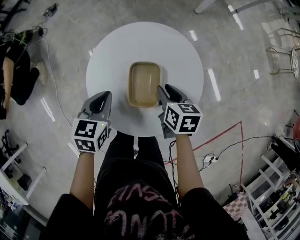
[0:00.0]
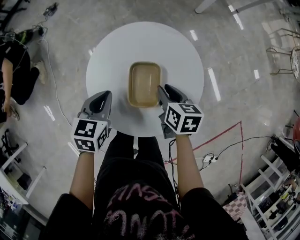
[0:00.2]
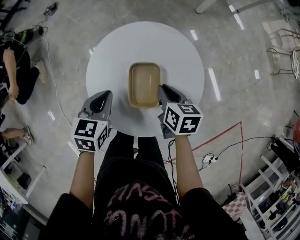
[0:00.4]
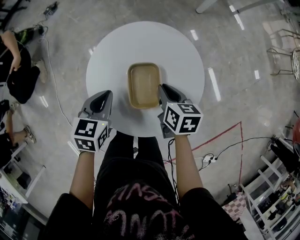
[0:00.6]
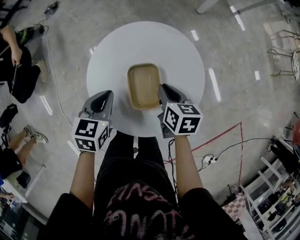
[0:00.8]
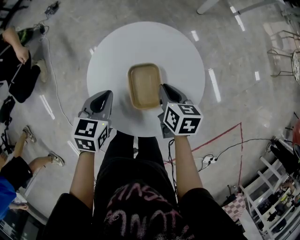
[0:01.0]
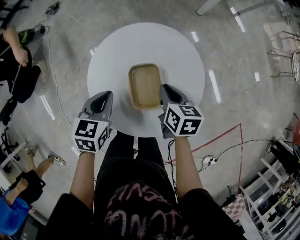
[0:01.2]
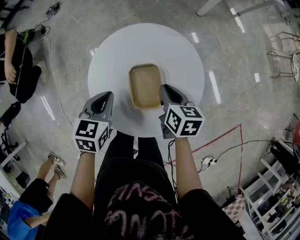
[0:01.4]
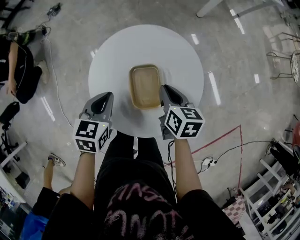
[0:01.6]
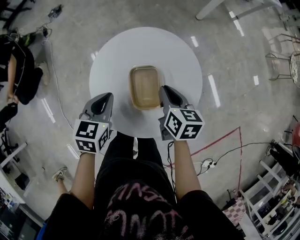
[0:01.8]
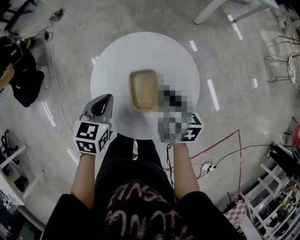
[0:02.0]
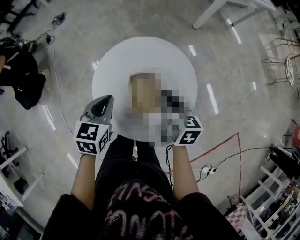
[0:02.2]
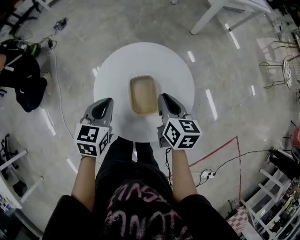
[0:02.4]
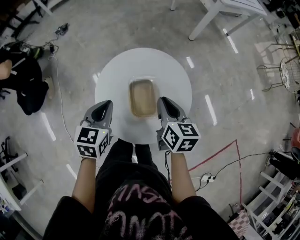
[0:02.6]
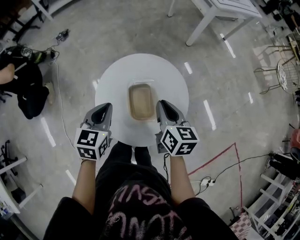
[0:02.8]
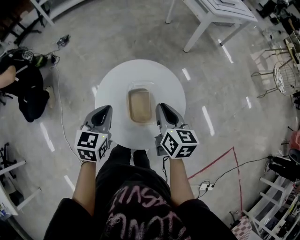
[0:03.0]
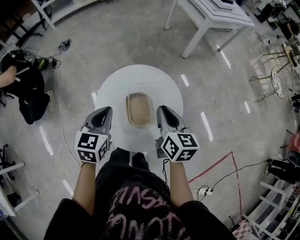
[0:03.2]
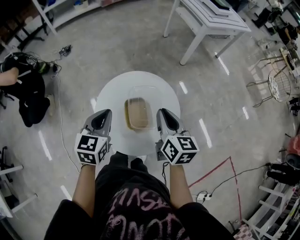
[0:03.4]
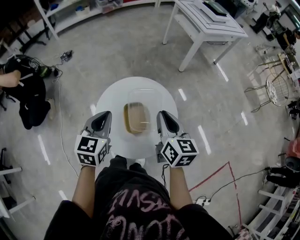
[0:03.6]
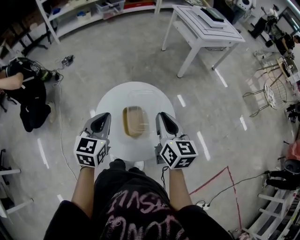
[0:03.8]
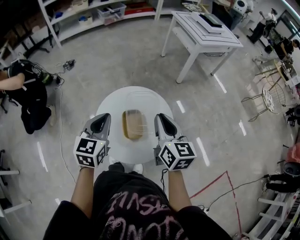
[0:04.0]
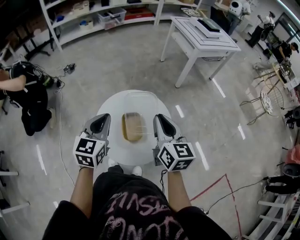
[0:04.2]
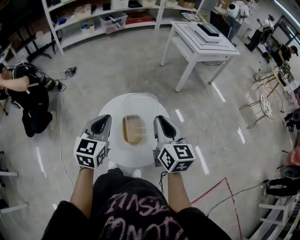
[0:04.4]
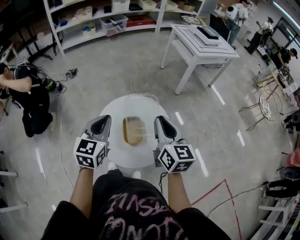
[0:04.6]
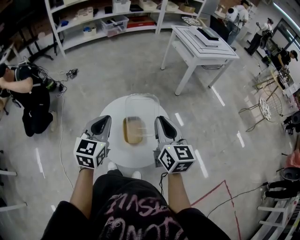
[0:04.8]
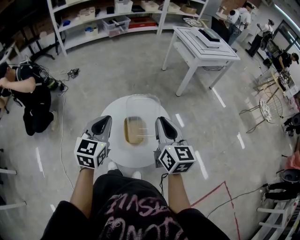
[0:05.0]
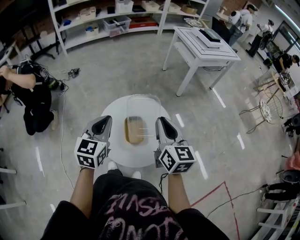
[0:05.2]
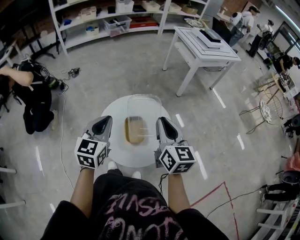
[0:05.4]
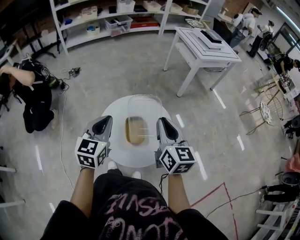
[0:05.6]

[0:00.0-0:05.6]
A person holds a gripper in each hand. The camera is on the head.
0:00.0 to 0:01.4: The grippers move only a little.
0:01.4 to 0:02.8: The two grippers go some 15 cm upward.
0:02.8 to 0:04.2: The two grippers go approximately 15 cm upward. The right gripper swivels approximately 20 degrees.
0:04.2 to 0:05.6: There are only small adjustments of the grippers.

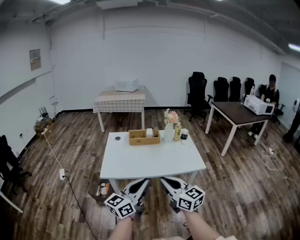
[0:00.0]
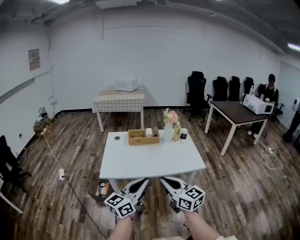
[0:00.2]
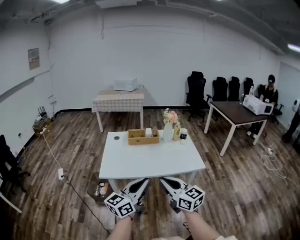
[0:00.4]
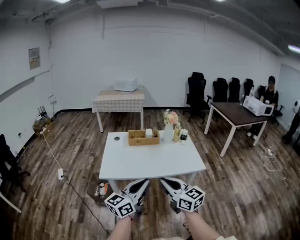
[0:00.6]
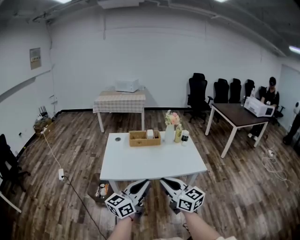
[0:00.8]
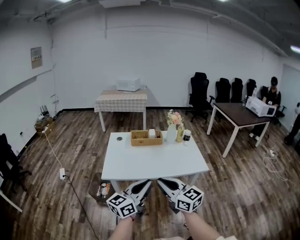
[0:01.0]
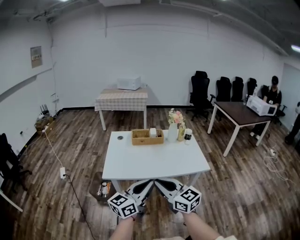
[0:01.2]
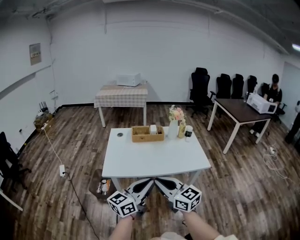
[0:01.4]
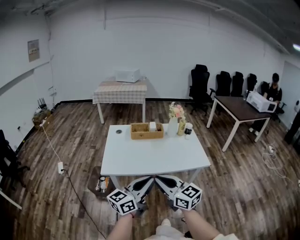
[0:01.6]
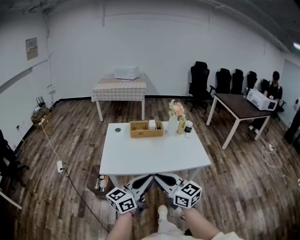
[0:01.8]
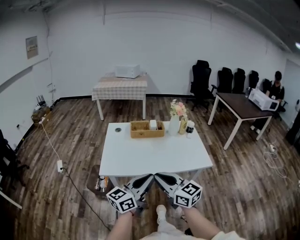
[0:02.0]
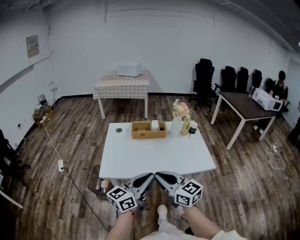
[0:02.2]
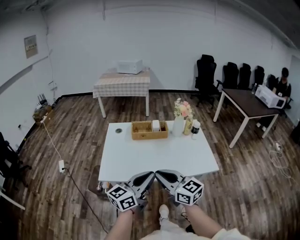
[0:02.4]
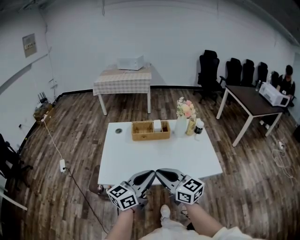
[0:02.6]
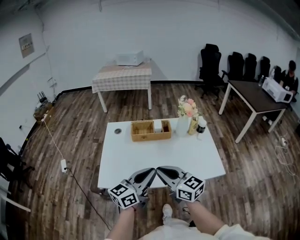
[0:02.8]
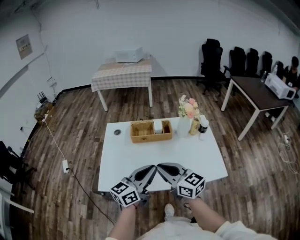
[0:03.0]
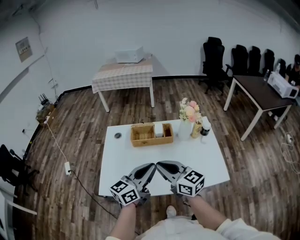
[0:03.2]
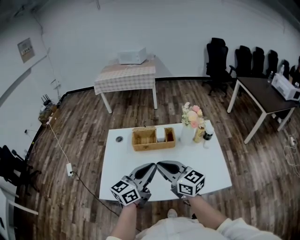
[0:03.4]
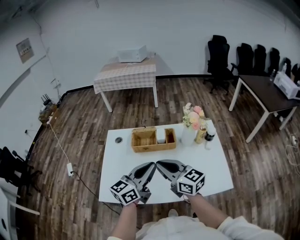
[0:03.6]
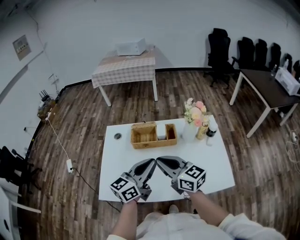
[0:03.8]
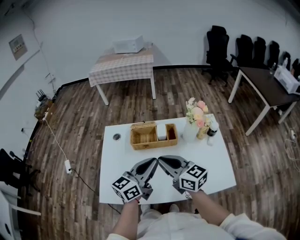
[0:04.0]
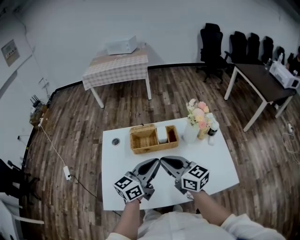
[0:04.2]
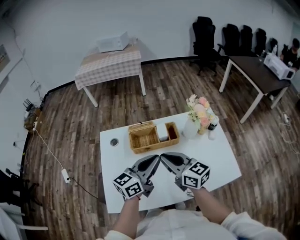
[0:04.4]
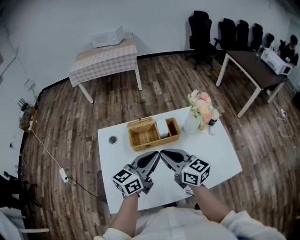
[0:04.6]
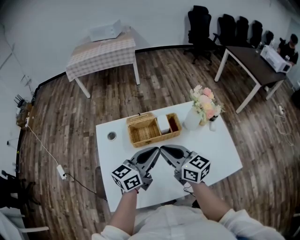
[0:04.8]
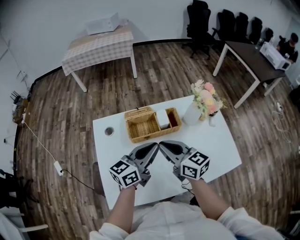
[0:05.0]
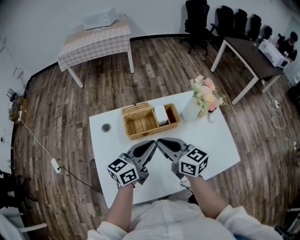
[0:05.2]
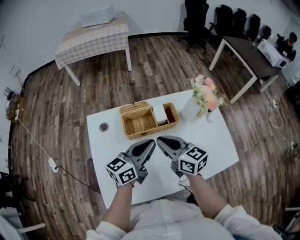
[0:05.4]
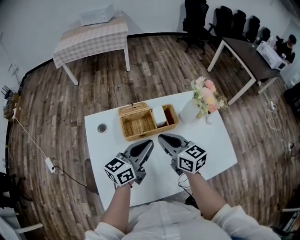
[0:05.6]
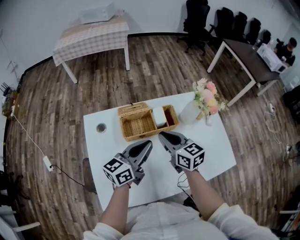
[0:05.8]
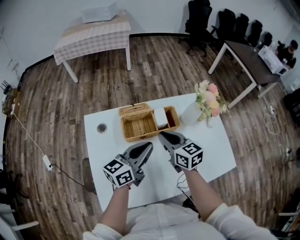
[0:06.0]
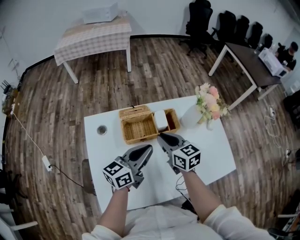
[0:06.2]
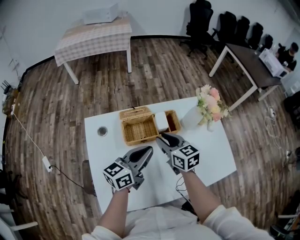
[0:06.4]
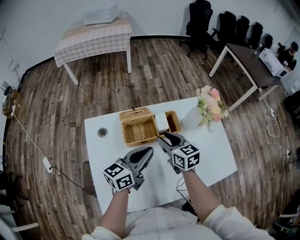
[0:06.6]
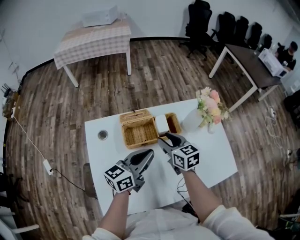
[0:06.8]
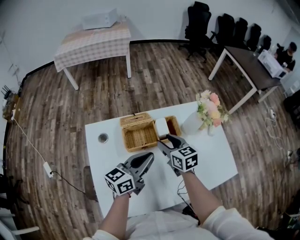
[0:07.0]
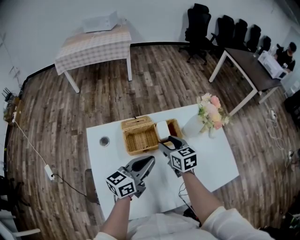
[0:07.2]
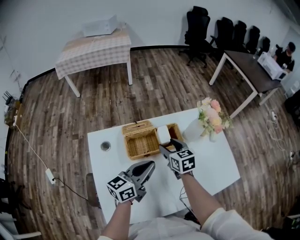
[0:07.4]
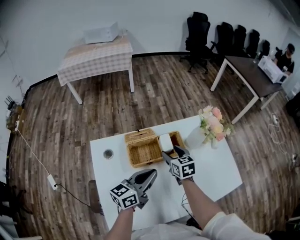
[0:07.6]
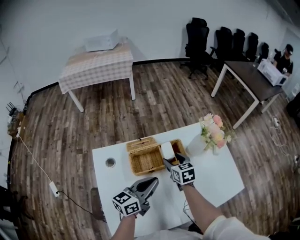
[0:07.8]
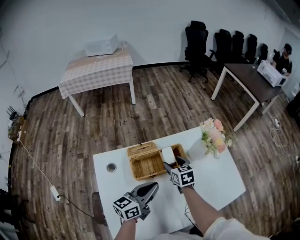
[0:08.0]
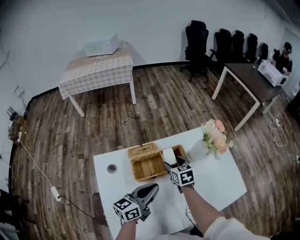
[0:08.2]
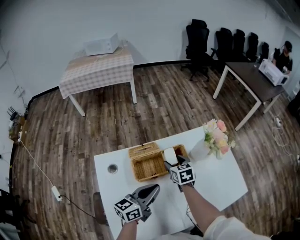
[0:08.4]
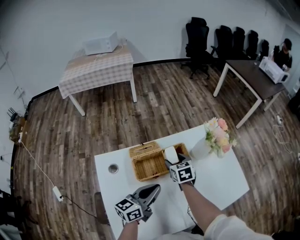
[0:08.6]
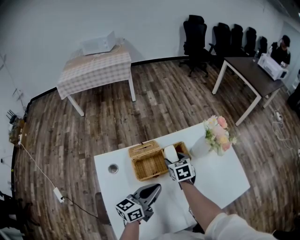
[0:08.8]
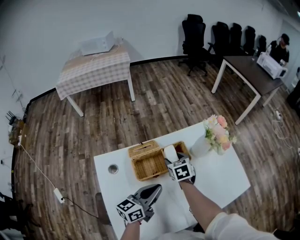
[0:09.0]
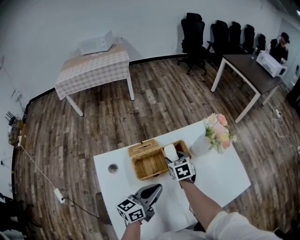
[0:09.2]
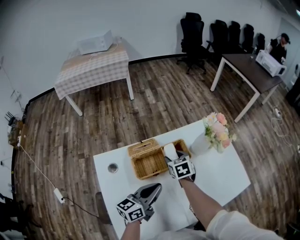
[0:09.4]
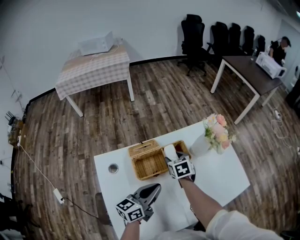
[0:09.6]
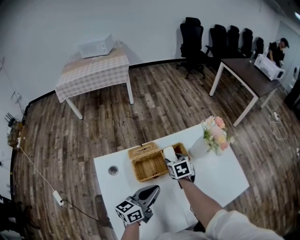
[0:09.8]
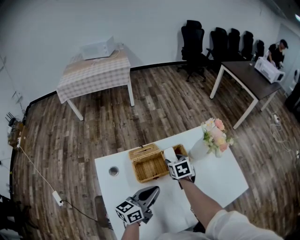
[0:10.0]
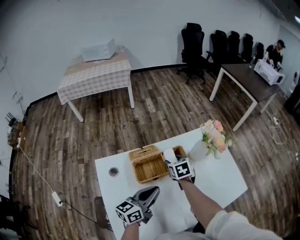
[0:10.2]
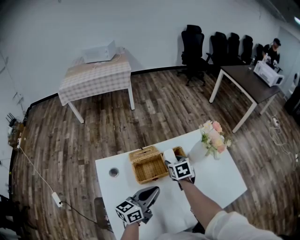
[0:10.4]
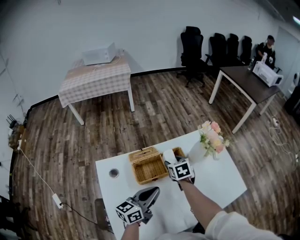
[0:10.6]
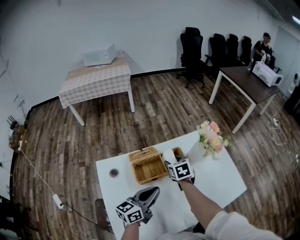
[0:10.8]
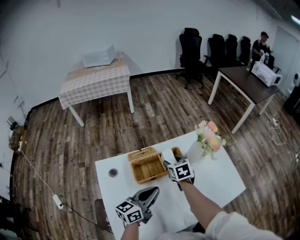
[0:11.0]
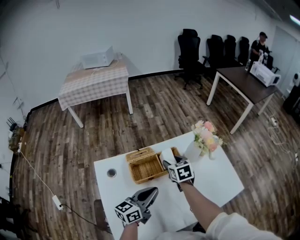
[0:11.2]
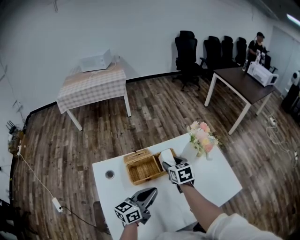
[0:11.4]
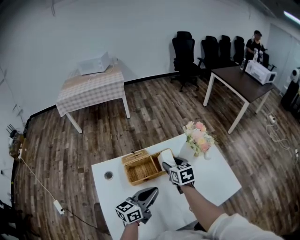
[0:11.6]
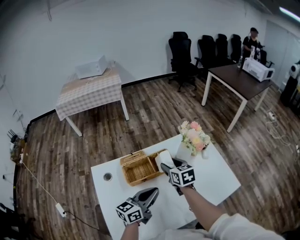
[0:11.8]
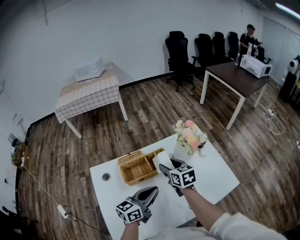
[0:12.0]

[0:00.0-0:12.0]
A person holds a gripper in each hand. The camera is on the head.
0:00.0 to 0:01.6: The right gripper heads to the left, covering roughly 5 cm.
0:01.6 to 0:03.0: The two grippers go roughly 25 cm forward.
0:03.0 to 0:04.4: Both grippers move forward, roughly 20 cm.
0:04.4 to 0:06.0: The right gripper travels forward and downward by about 15 cm, and turns by roughly 20 degrees. The left gripper shifts about 5 cm downward.
0:06.0 to 0:07.6: The right gripper shifts some 10 cm forward and downward, turns by about 20 degrees, and opens up.
0:07.6 to 0:09.0: The right gripper shifts by some 5 cm.
0:09.0 to 0:10.4: The grippers make only small movements.
0:10.4 to 0:12.0: The left gripper shifts about 10 cm to the right. The right gripper is displaced upward, to the right and backward by some 15 cm, and swivels approximately 20 degrees.

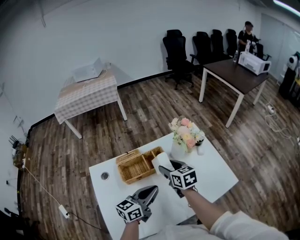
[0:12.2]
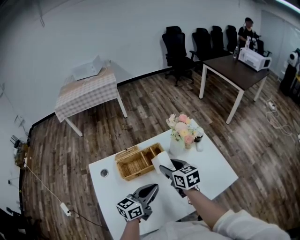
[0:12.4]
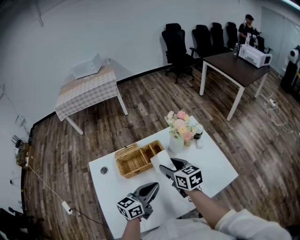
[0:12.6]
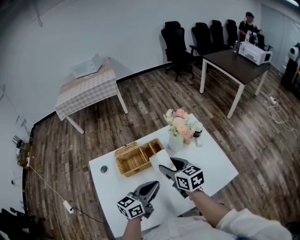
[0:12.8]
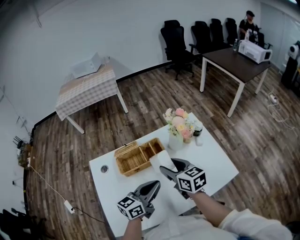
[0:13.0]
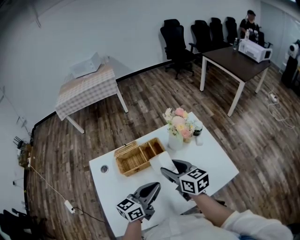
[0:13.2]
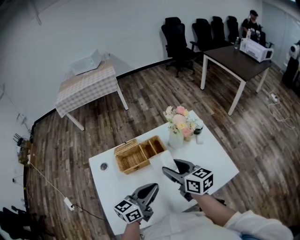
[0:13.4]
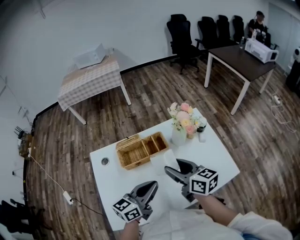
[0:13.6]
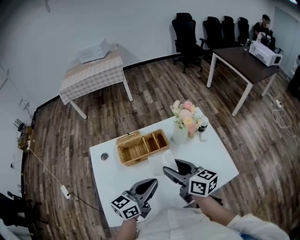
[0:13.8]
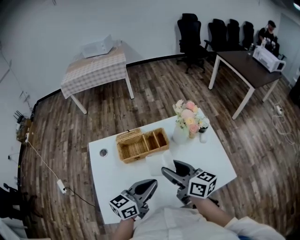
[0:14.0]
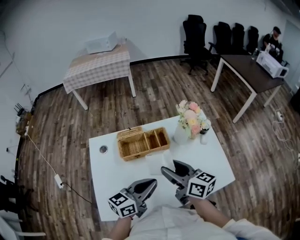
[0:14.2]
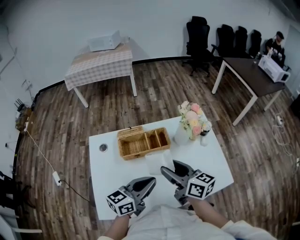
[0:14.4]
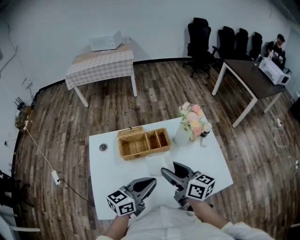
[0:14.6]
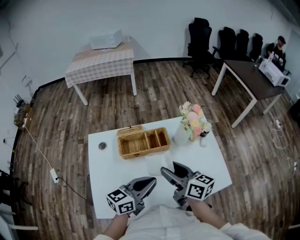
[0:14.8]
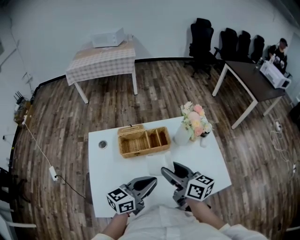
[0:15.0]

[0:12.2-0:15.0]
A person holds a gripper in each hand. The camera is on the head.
0:12.2 to 0:13.6: The right gripper shifts some 10 cm backward and upward, and swivels roughly 20 degrees, while the left gripper shifts by roughly 5 cm.
0:13.6 to 0:15.0: The grippers move only a little.

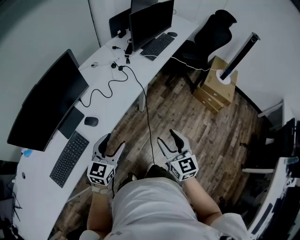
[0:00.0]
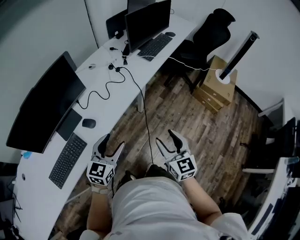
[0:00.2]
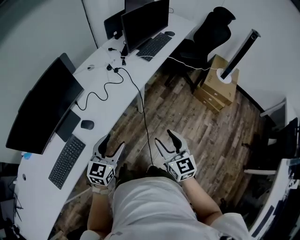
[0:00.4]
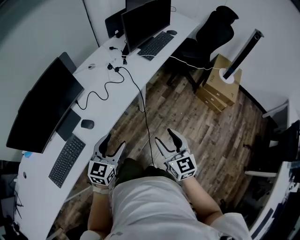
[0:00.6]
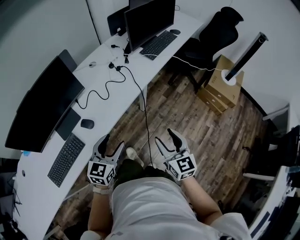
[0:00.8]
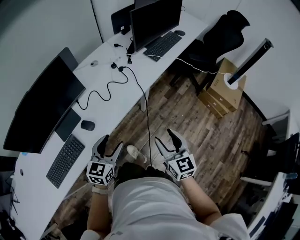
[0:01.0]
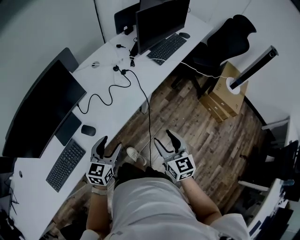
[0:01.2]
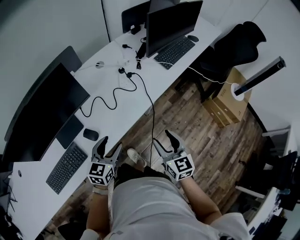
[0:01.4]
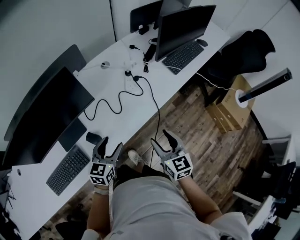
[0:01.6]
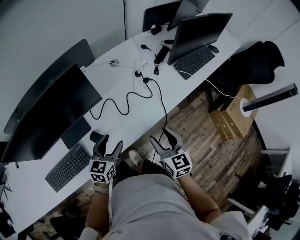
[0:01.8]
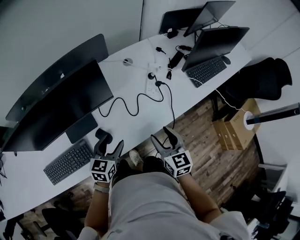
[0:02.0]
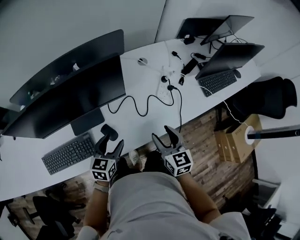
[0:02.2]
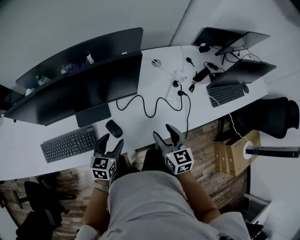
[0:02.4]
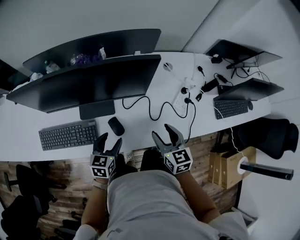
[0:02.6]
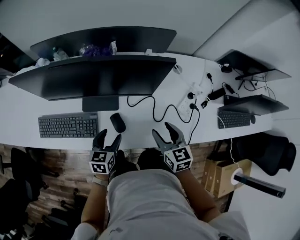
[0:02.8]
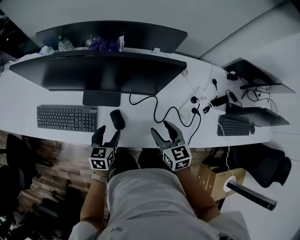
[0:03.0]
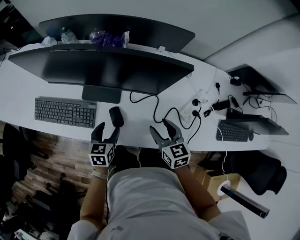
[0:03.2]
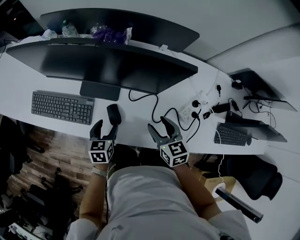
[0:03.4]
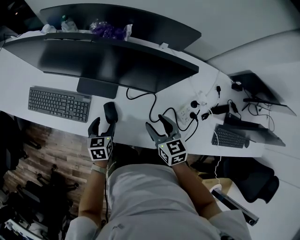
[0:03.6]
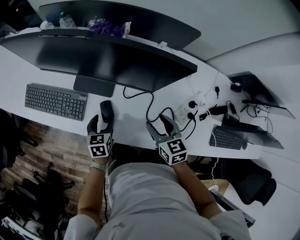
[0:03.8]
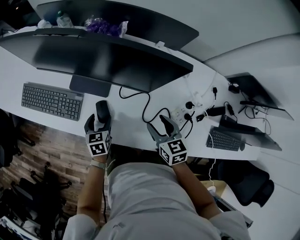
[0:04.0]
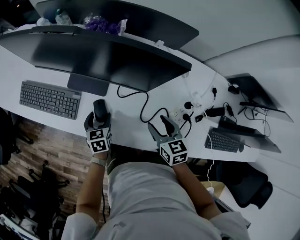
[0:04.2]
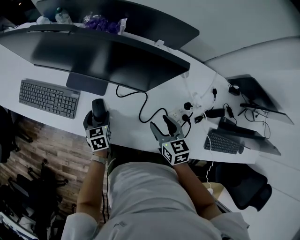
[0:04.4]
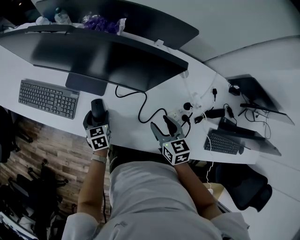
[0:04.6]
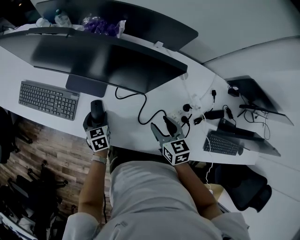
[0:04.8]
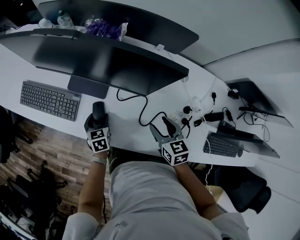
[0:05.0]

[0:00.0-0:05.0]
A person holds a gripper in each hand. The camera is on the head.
0:00.0 to 0:01.6: The left gripper is displaced forward and downward by some 20 cm, and changes its angle by approximately 20 degrees. Meanwhile the right gripper shifts about 20 cm forward.
0:01.6 to 0:03.4: The left gripper moves roughly 20 cm, and rotates some 60 degrees; the right gripper moves some 25 cm, and rotates roughly 50 degrees.
0:03.4 to 0:05.0: The right gripper heads to the right, covering some 10 cm. The left gripper moves downward, some 5 cm.
